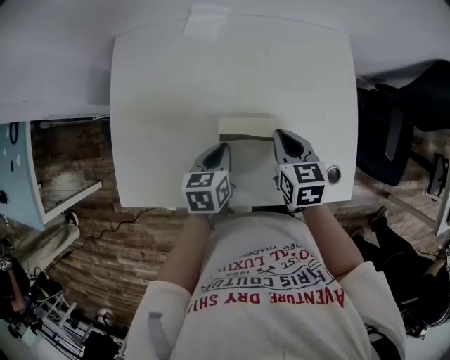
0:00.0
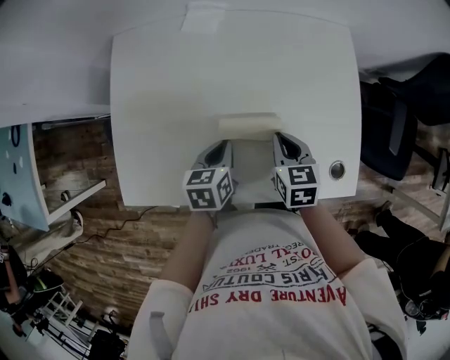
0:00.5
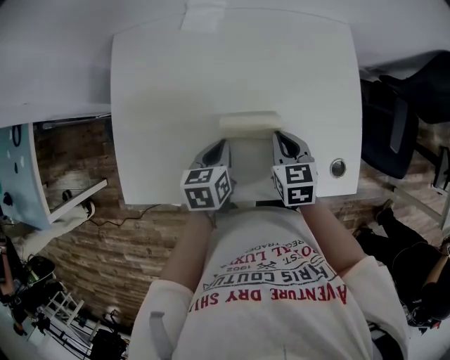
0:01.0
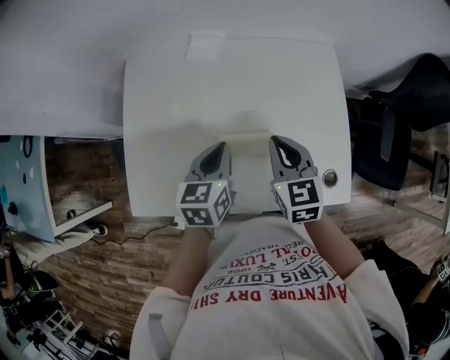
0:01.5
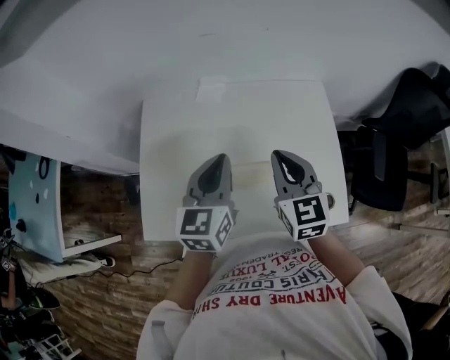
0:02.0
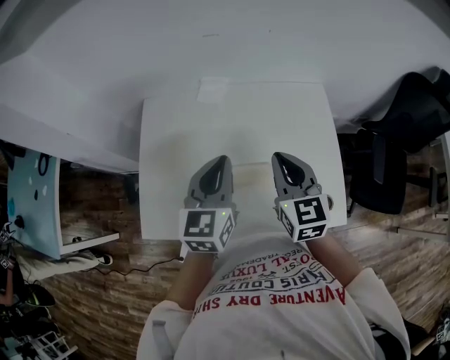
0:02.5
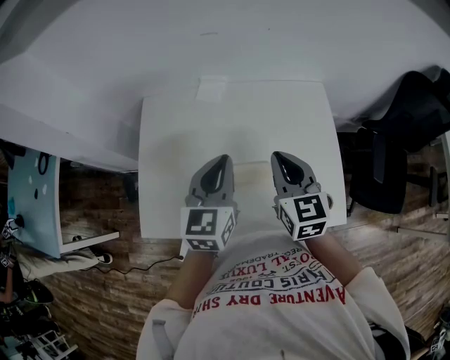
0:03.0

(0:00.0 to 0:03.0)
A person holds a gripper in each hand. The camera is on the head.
0:00.0 - 0:01.5: Both grippers travel together upward, about 10 cm.
0:01.5 - 0:03.0: The grippers both shift upward by about 10 cm. The left gripper turns by some 20 degrees.

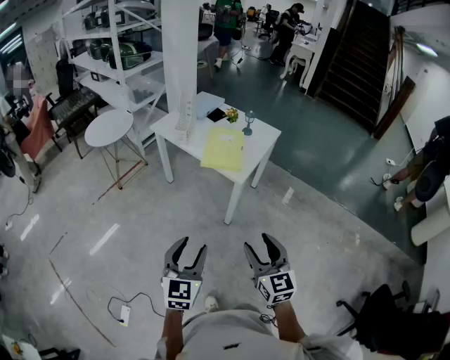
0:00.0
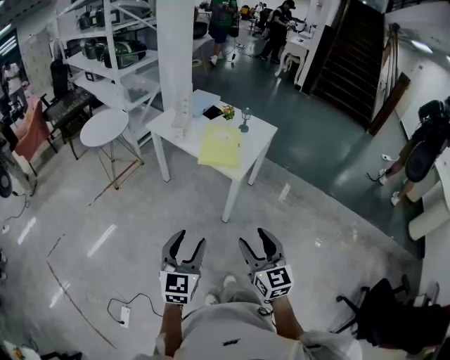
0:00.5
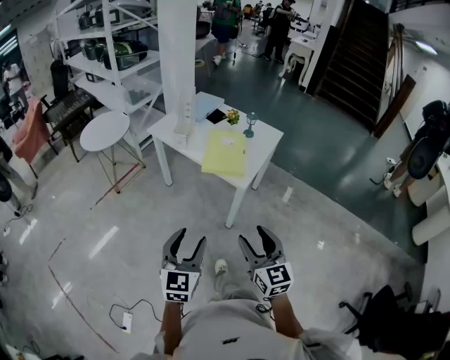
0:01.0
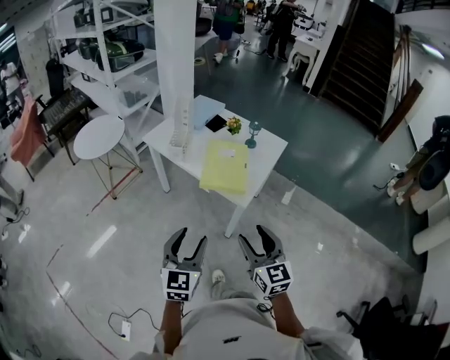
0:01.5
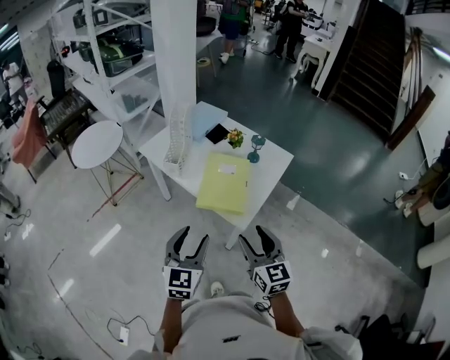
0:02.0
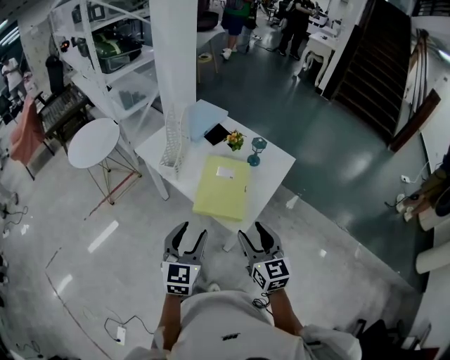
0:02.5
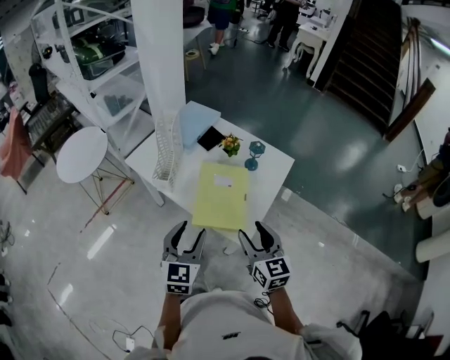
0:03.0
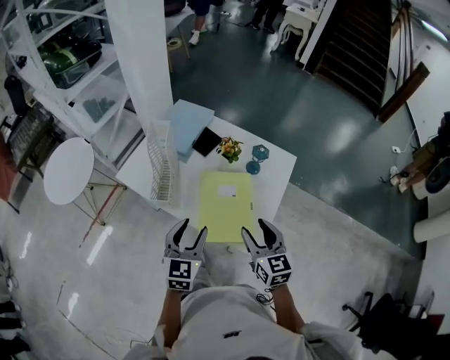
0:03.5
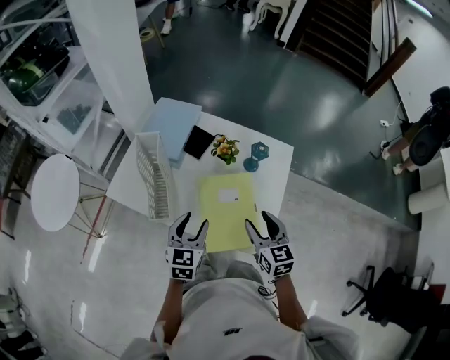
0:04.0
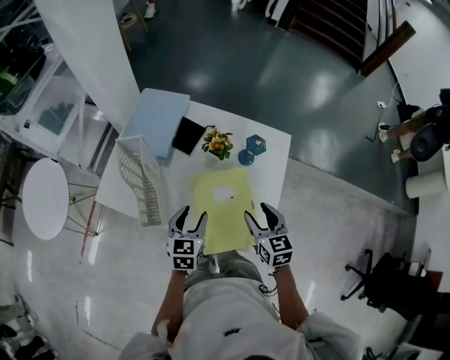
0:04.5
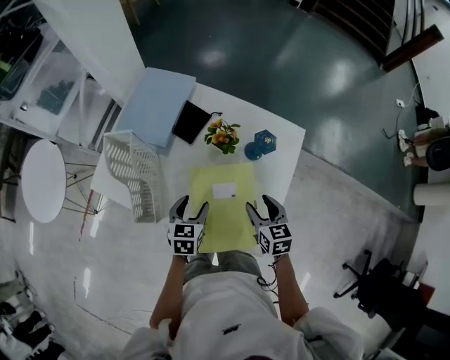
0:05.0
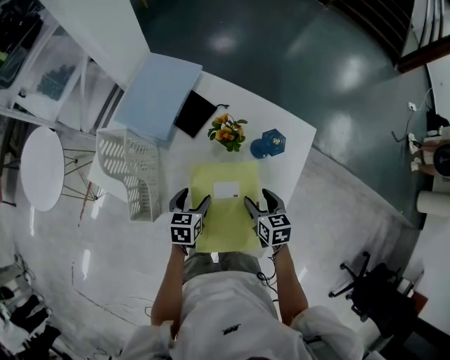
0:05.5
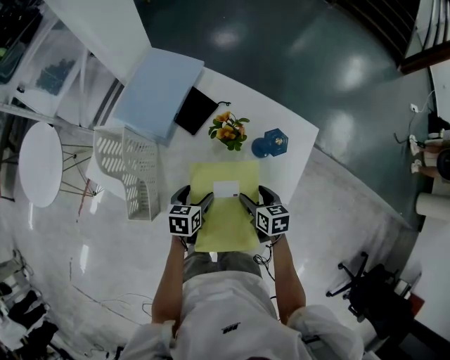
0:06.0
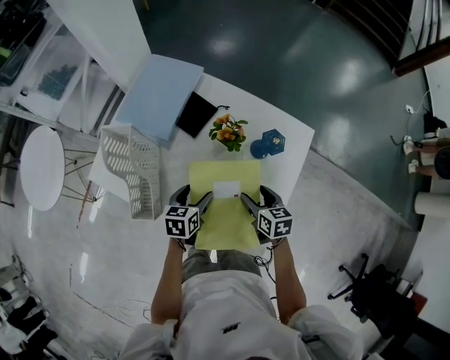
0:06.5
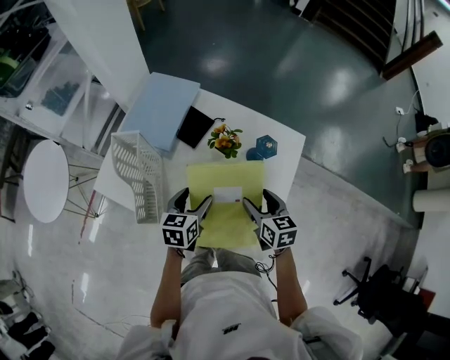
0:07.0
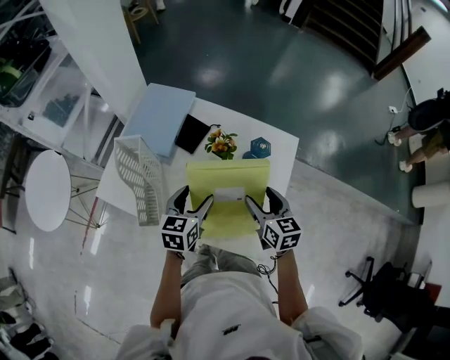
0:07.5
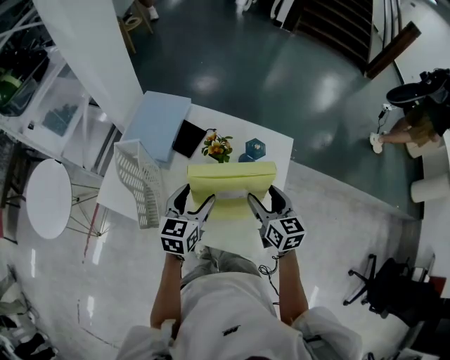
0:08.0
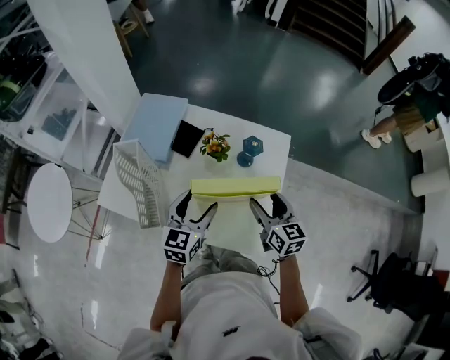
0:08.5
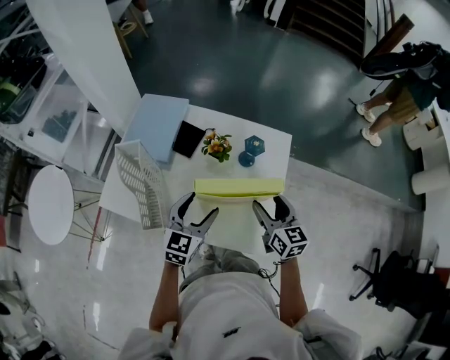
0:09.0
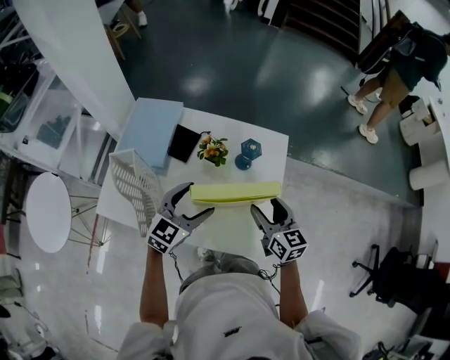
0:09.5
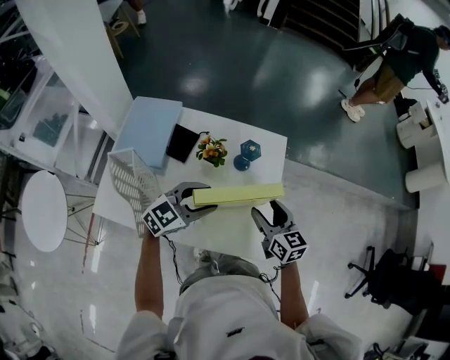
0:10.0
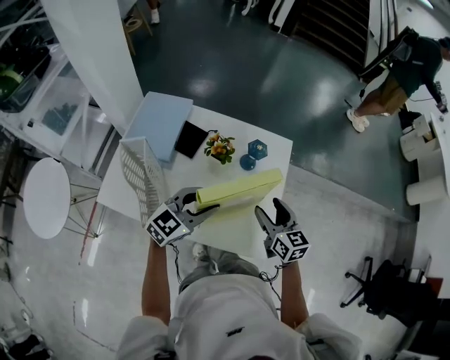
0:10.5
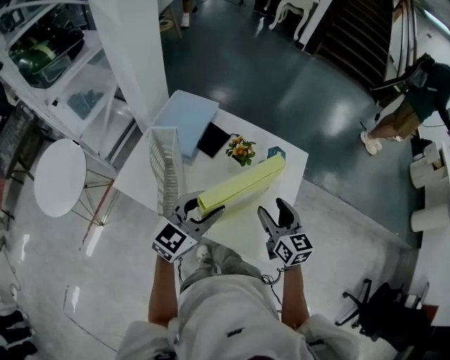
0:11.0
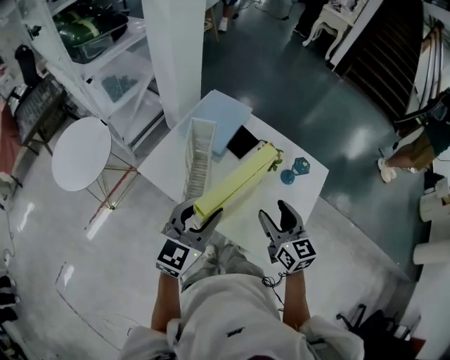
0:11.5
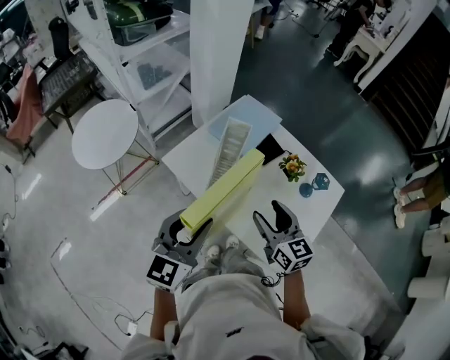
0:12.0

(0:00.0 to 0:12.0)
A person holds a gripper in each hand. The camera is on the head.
0:00.0 - 0:02.0: Both grippers travel together forward, some 35 cm.
0:02.0 - 0:04.0: The grippers both shift forward by approximately 35 cm. The left gripper changes its angle by some 20 degrees, while the right gripper changes its angle by roughly 20 degrees.
0:04.0 - 0:06.0: The two grippers go approximately 25 cm downward and forward. The left gripper rotates approximately 40 degrees, and opens up. The right gripper swivels some 30 degrees.
0:06.0 - 0:08.0: Both grippers travel together upward, about 20 cm. The left gripper rotates some 30 degrees. Meanwhile the right gripper changes its angle by some 30 degrees.
0:08.0 - 0:10.0: The left gripper turns by about 50 degrees.
0:10.0 - 0:12.0: The left gripper moves approximately 35 cm, and changes its angle by some 70 degrees. Meanwhile the right gripper moves roughly 25 cm, and turns by about 30 degrees.

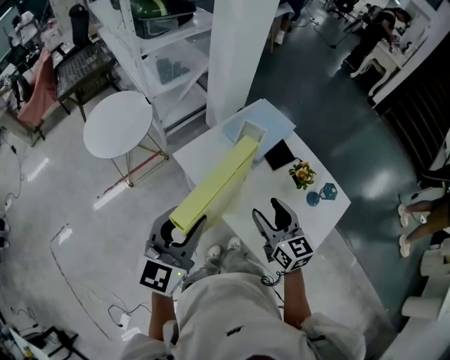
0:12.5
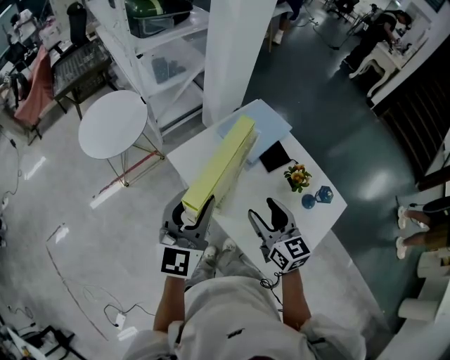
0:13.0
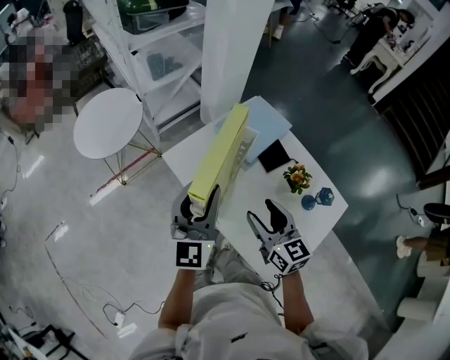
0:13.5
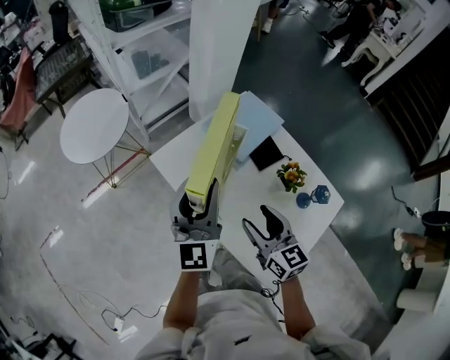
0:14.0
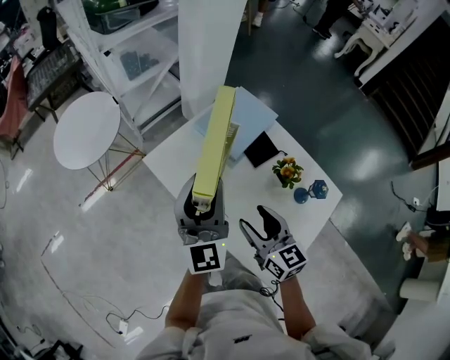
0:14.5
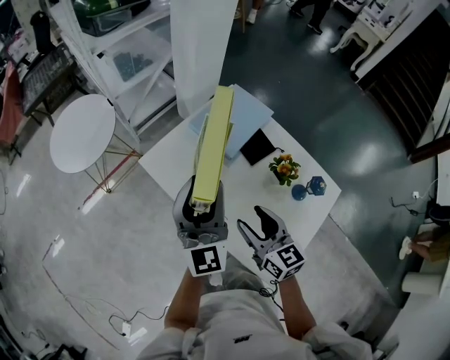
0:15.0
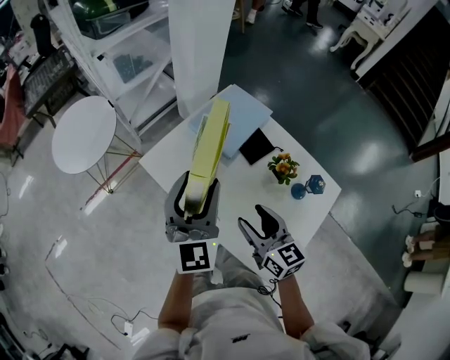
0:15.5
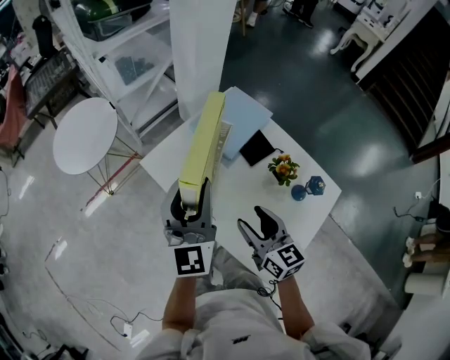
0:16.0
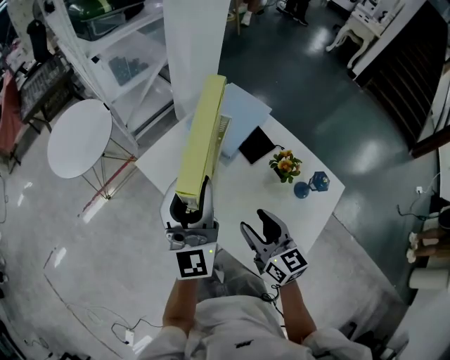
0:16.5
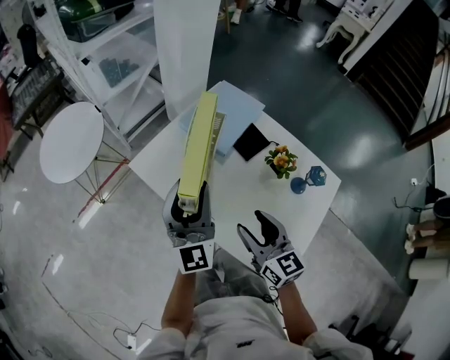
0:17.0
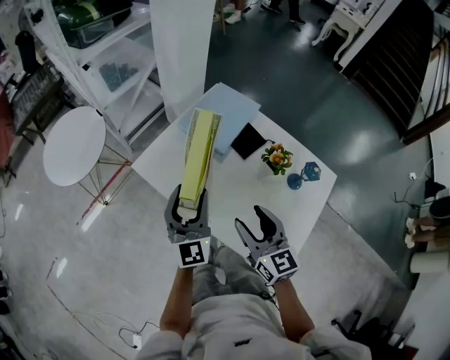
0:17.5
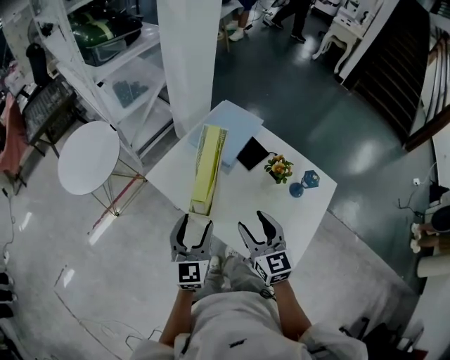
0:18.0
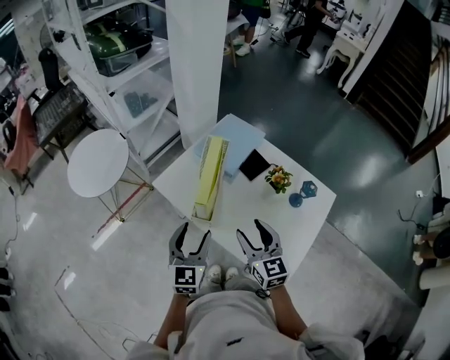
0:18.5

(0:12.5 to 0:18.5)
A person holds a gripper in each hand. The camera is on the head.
0:12.5 - 0:14.5: The right gripper moves roughly 5 cm. Meanwhile the left gripper shifts some 15 cm forward and to the right, and turns by roughly 30 degrees.
0:14.5 - 0:16.5: The grippers move only a little.
0:16.5 - 0:18.5: The right gripper is displaced upward by about 5 cm; the left gripper moves backward and downward, roughly 15 cm, and angles its fingers downward, by some 30 degrees.

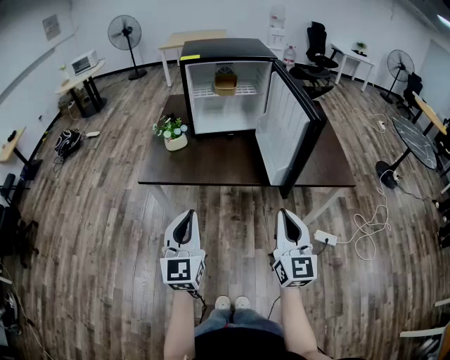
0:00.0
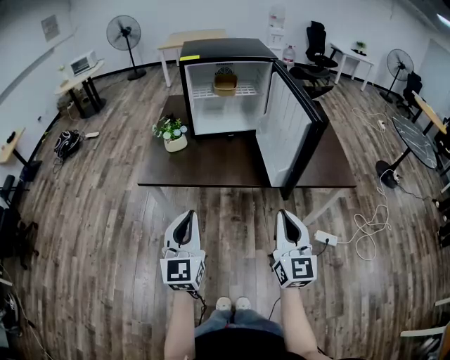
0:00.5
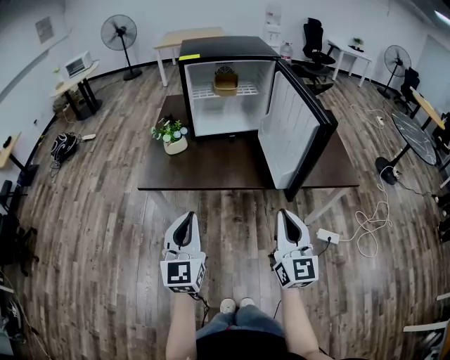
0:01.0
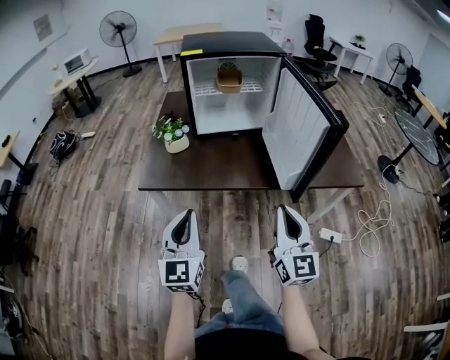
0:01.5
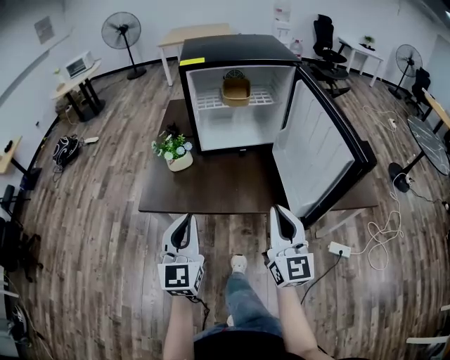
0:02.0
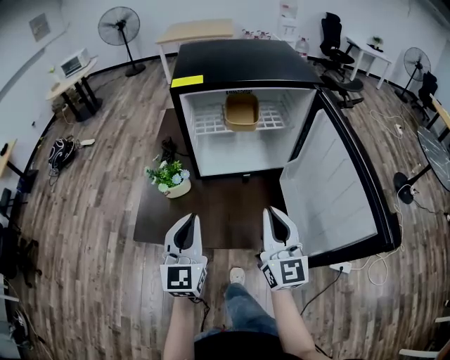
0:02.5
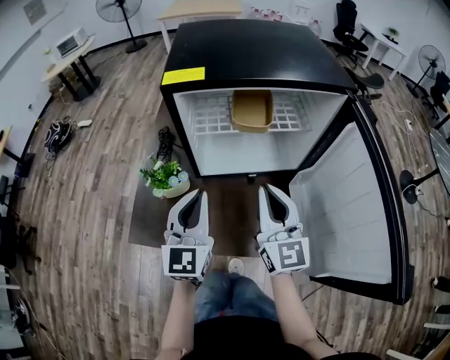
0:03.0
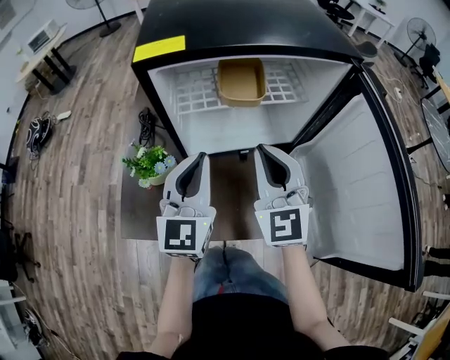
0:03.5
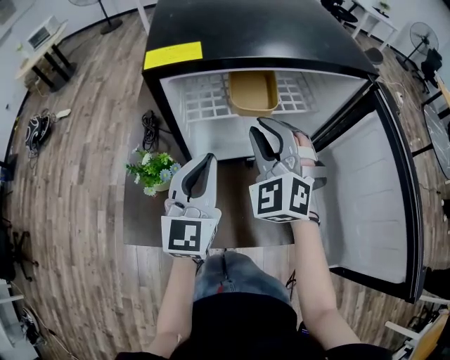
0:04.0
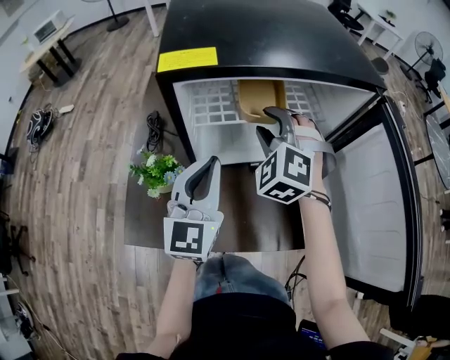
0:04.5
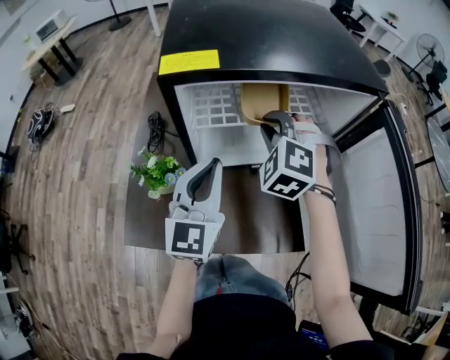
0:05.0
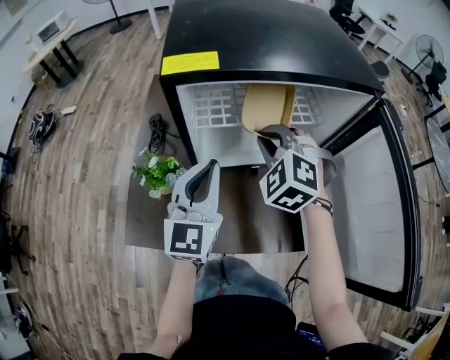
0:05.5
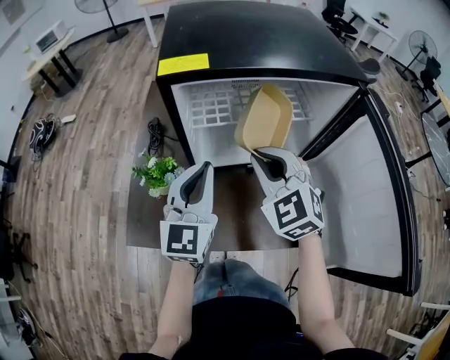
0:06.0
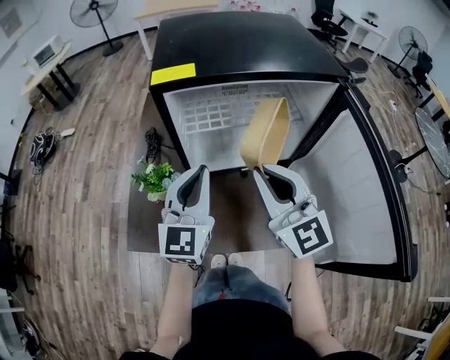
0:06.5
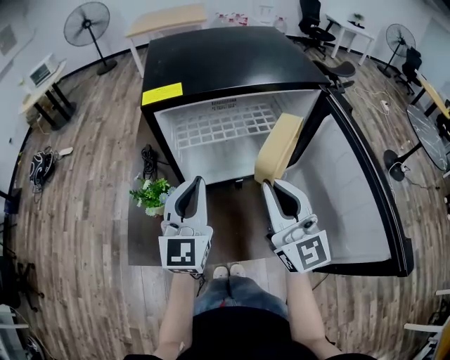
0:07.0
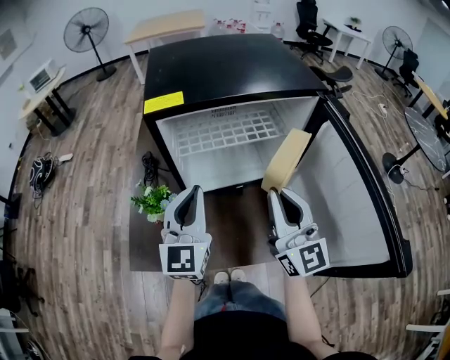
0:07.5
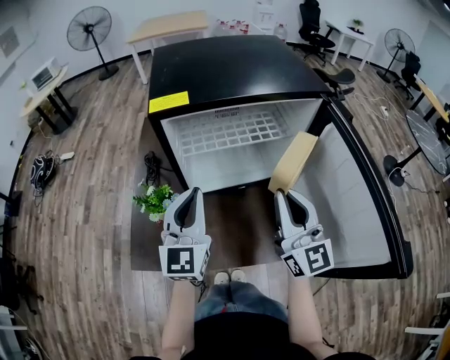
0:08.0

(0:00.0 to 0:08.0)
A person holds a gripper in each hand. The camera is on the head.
0:00.0 - 0:02.0: The left gripper is displaced forward by approximately 15 cm, while the right gripper goes approximately 20 cm forward and to the left.
0:02.0 - 0:04.0: Both grippers travel together forward, about 40 cm. The right gripper rotates around the line of its fingers by approximately 50 degrees, counterclockwise from behind.
0:04.0 - 0:06.0: The right gripper travels backward by approximately 5 cm, and turns by about 20 degrees.
0:06.0 - 0:08.0: The right gripper goes about 15 cm backward, to the right and upward, and points its fingers approximately 40 degrees further upward.
